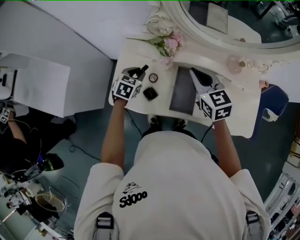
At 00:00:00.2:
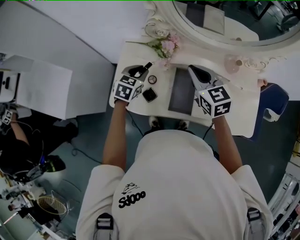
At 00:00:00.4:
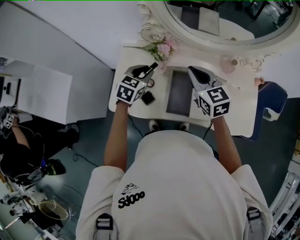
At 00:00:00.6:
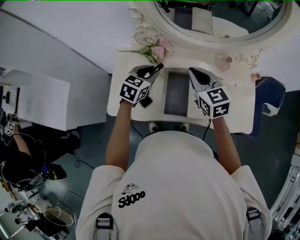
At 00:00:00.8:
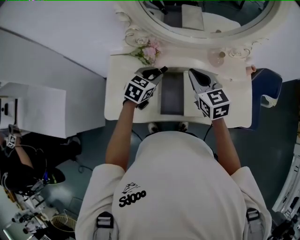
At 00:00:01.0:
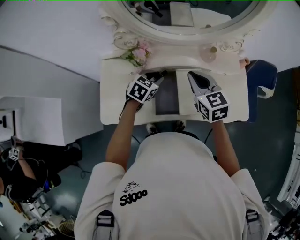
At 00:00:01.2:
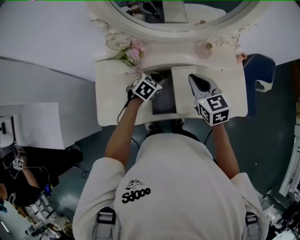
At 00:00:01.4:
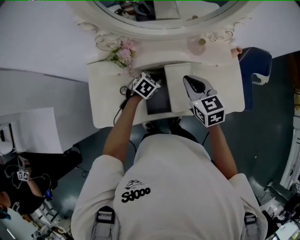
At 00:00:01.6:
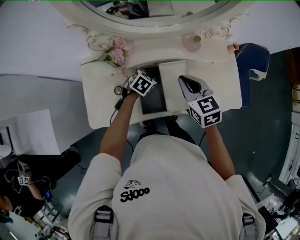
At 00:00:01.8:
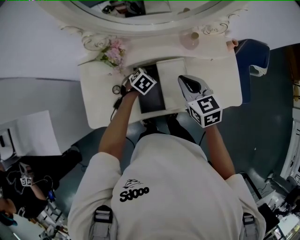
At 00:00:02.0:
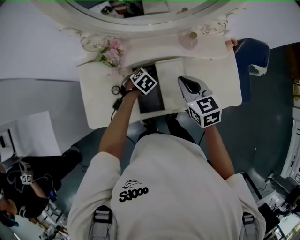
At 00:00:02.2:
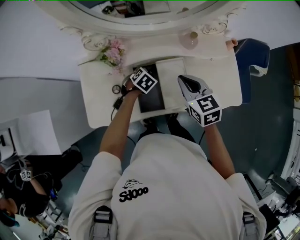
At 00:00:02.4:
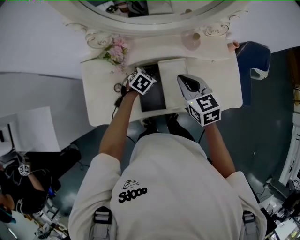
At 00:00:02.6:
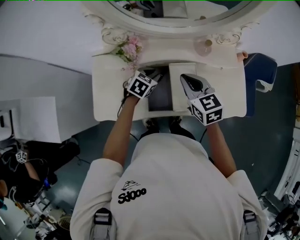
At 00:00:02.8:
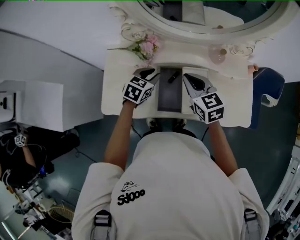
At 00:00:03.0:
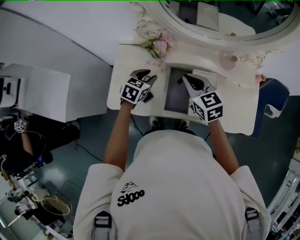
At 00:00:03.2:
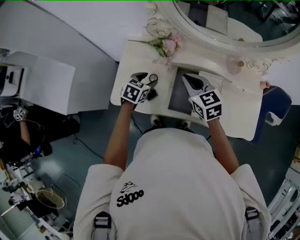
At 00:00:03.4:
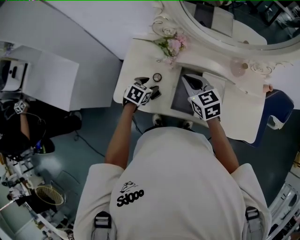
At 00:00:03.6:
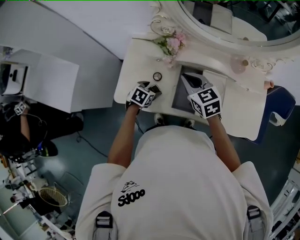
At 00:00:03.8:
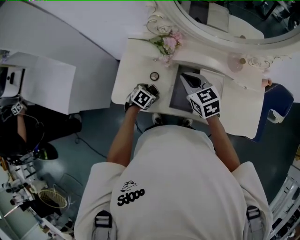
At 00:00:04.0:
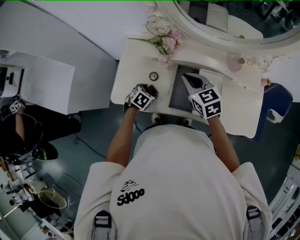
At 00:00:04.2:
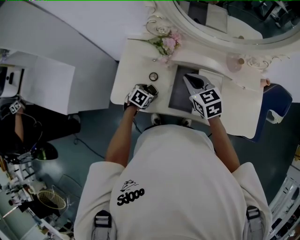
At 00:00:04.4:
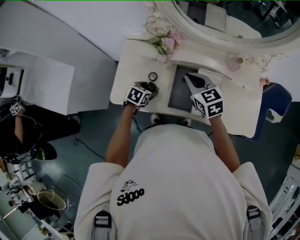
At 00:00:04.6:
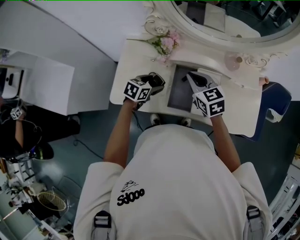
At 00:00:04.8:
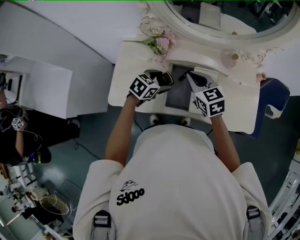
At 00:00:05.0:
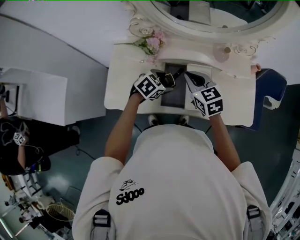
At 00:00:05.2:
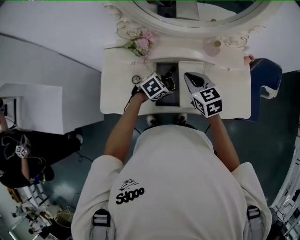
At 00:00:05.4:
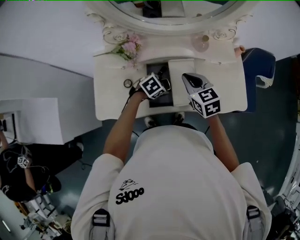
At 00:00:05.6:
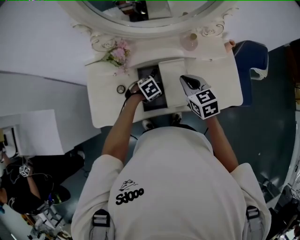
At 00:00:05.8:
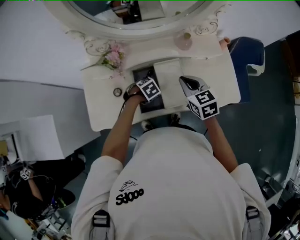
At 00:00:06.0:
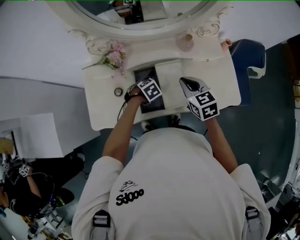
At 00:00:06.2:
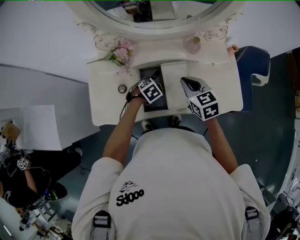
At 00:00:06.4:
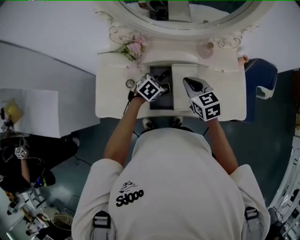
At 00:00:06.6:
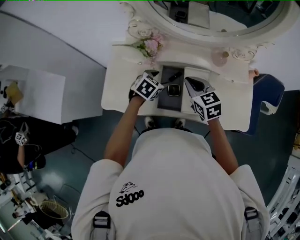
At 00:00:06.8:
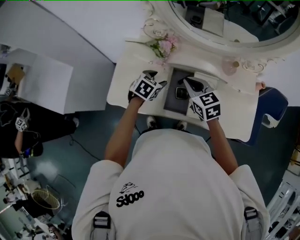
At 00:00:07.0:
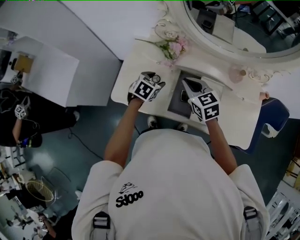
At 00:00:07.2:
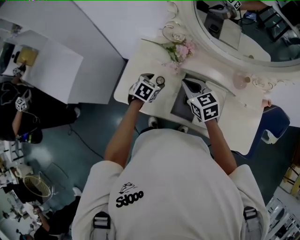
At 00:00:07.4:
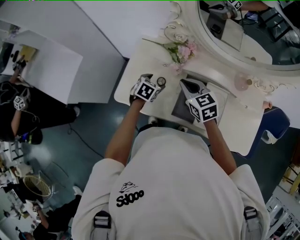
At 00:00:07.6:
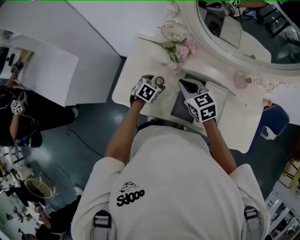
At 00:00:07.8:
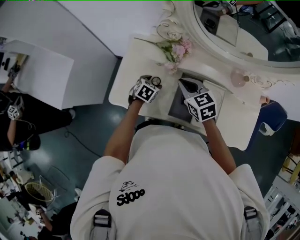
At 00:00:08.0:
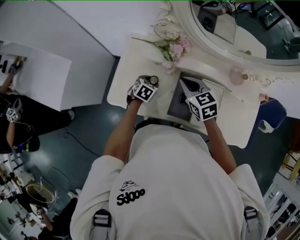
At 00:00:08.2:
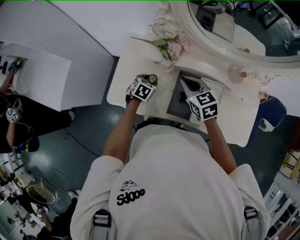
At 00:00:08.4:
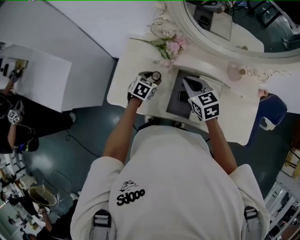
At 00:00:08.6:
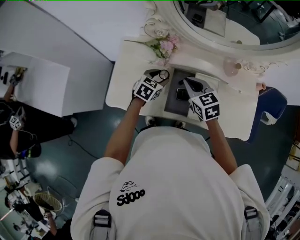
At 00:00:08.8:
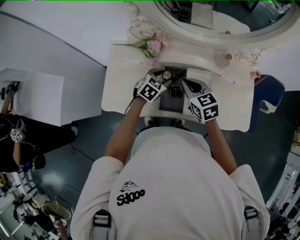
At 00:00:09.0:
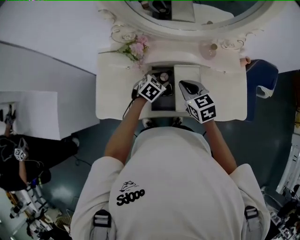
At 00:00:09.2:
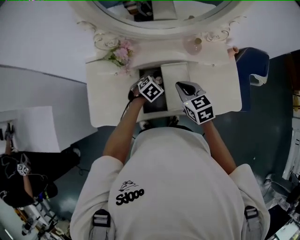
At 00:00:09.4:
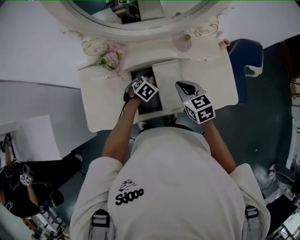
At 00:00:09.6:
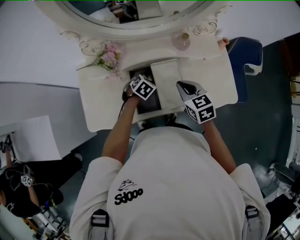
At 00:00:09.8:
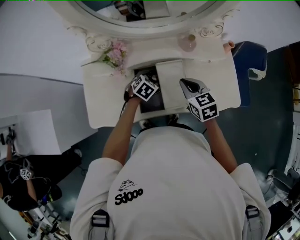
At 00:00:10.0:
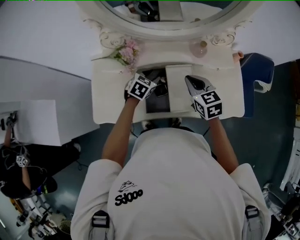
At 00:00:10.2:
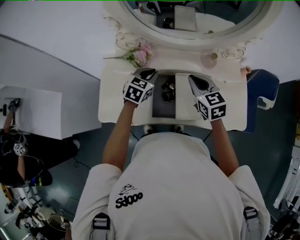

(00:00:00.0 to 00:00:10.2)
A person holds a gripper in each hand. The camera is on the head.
00:00:00.0 - 00:00:01.4: The left gripper moves some 25 cm, and changes its angle by approximately 30 degrees. The right gripper changes place by approximately 15 cm.
00:00:01.4 - 00:00:03.0: The left gripper travels to the left and upward by about 15 cm, and swivels approximately 30 degrees, while the right gripper travels to the left by about 10 cm.
00:00:03.0 - 00:00:04.4: The left gripper heads downward and backward, covering about 15 cm, and opens.
00:00:04.4 - 00:00:05.8: The right gripper changes place by about 15 cm, and rotates some 20 degrees. Meanwhile the left gripper moves approximately 10 cm upward and comes back, and twists roughly 40 degrees clockwise, seen from behind.
00:00:05.8 - 00:00:07.2: The left gripper shifts by about 20 cm, and turns by approximately 60 degrees, while the right gripper ends up roughly 20 cm from where it was, and rotates some 30 degrees.
00:00:07.2 - 00:00:08.8: The right gripper heads to the right, covering some 10 cm, while the left gripper is displaced to the right by about 15 cm, and rotates approximately 20 degrees.
00:00:08.8 - 00:00:10.2: The right gripper moves to the right, approximately 5 cm. The left gripper goes about 10 cm upward, and closes.

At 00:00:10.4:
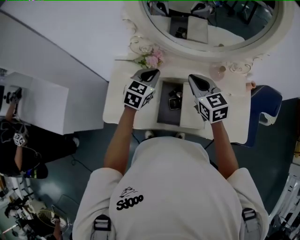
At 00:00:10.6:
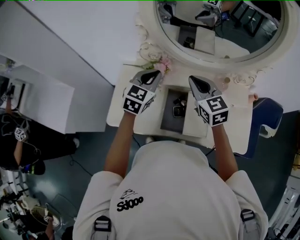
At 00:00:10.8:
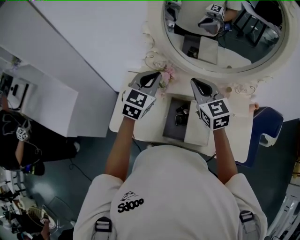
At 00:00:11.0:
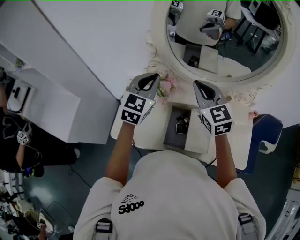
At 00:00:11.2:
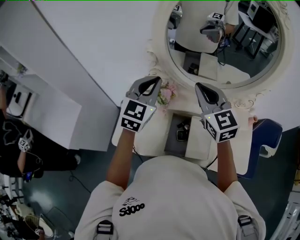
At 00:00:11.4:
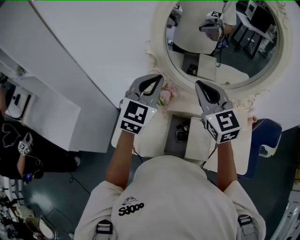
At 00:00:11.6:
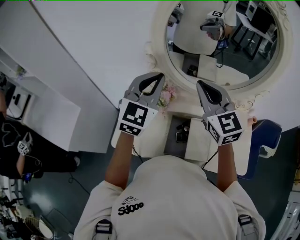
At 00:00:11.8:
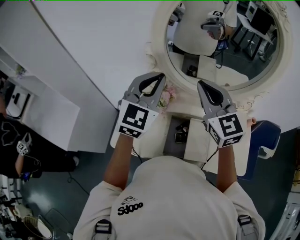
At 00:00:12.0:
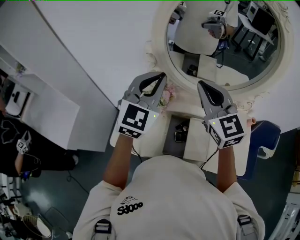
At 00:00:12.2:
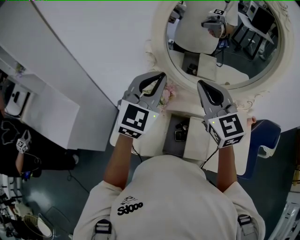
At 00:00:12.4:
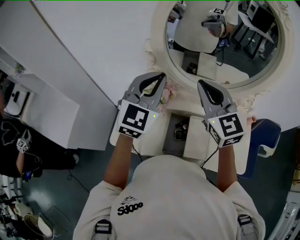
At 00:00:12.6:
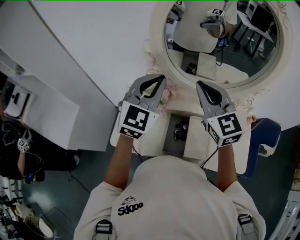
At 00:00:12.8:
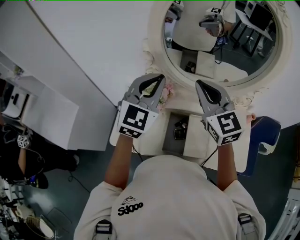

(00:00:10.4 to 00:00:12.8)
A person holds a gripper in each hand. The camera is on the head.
00:00:10.4 - 00:00:11.6: Both grippers move upward, approximately 20 cm. The left gripper rotates some 30 degrees; the right gripper rotates approximately 20 degrees.
00:00:11.6 - 00:00:12.8: The grippers make only small movements.

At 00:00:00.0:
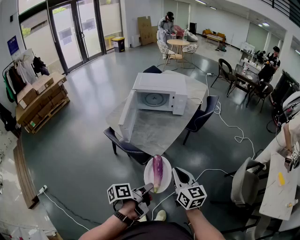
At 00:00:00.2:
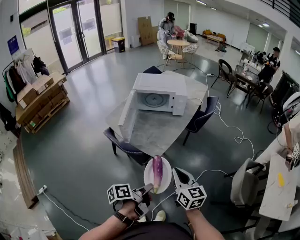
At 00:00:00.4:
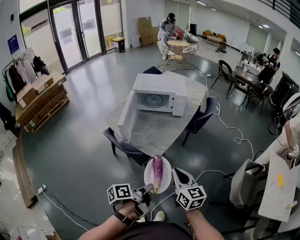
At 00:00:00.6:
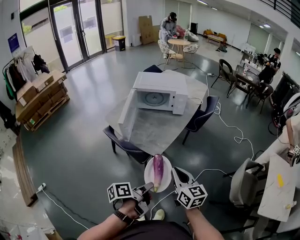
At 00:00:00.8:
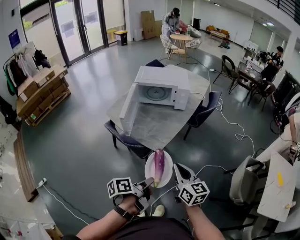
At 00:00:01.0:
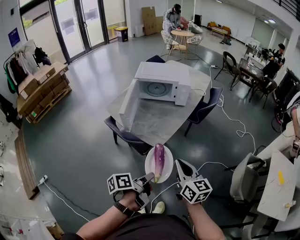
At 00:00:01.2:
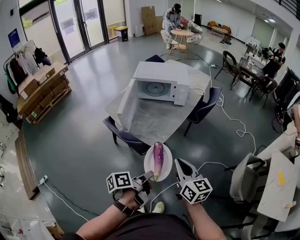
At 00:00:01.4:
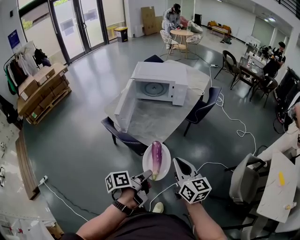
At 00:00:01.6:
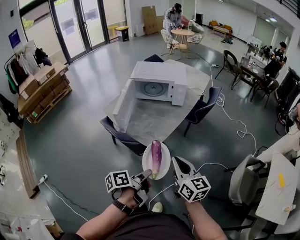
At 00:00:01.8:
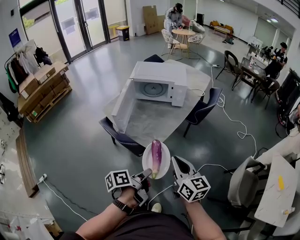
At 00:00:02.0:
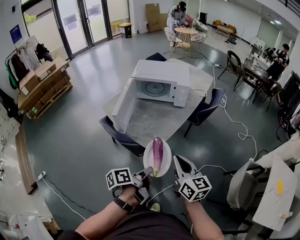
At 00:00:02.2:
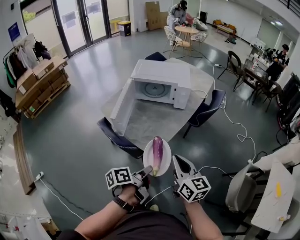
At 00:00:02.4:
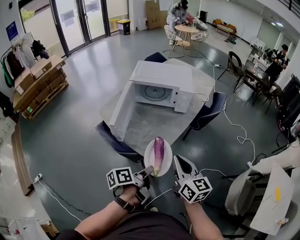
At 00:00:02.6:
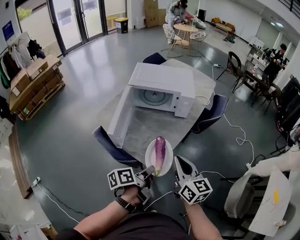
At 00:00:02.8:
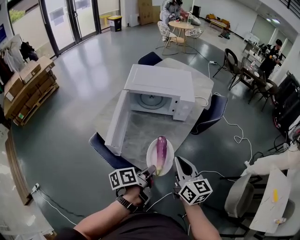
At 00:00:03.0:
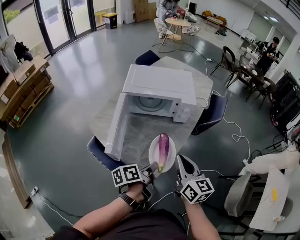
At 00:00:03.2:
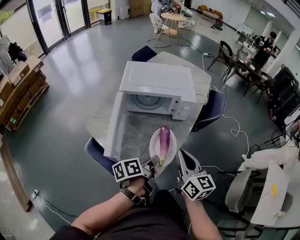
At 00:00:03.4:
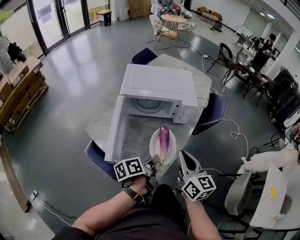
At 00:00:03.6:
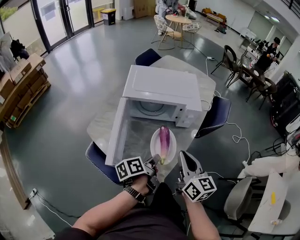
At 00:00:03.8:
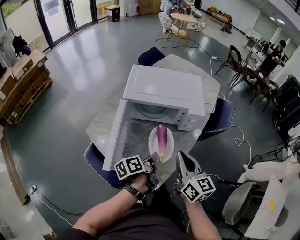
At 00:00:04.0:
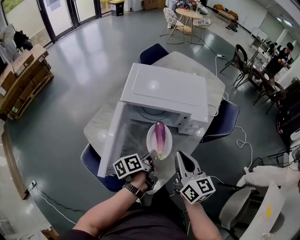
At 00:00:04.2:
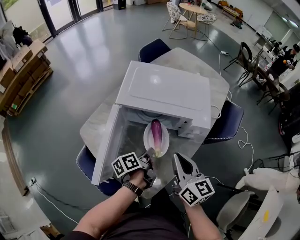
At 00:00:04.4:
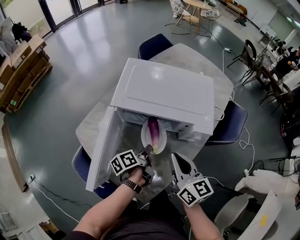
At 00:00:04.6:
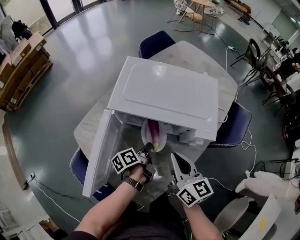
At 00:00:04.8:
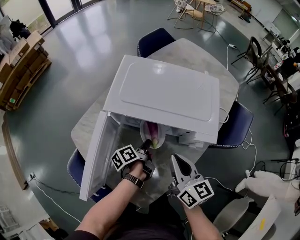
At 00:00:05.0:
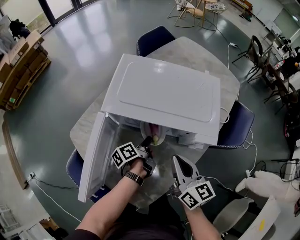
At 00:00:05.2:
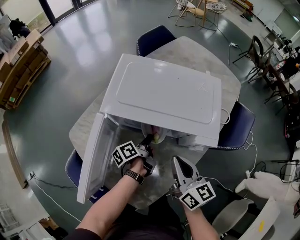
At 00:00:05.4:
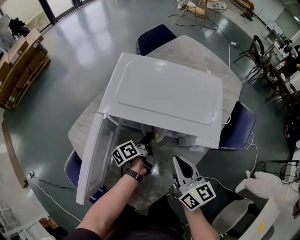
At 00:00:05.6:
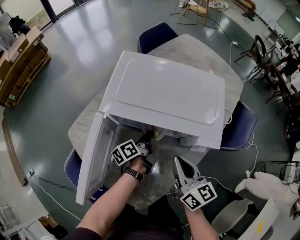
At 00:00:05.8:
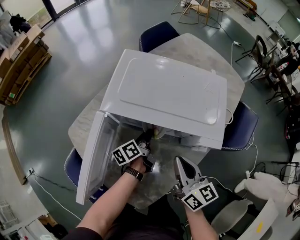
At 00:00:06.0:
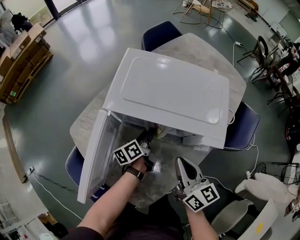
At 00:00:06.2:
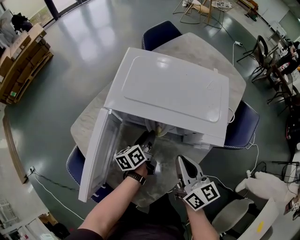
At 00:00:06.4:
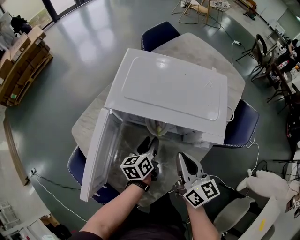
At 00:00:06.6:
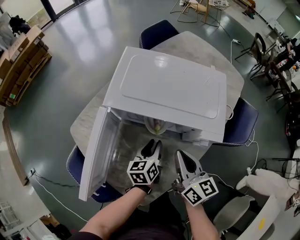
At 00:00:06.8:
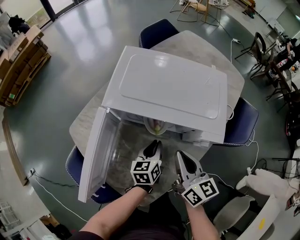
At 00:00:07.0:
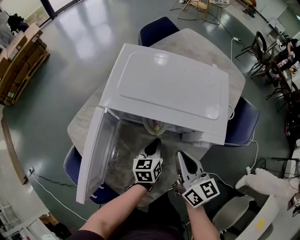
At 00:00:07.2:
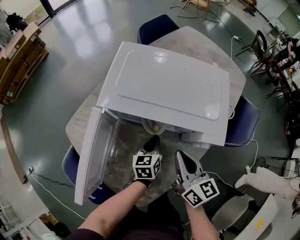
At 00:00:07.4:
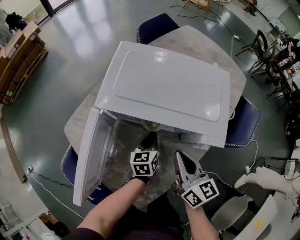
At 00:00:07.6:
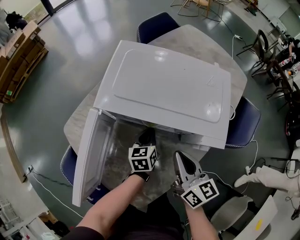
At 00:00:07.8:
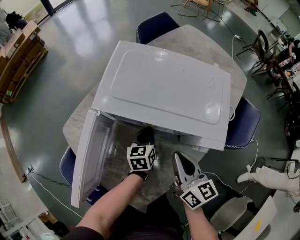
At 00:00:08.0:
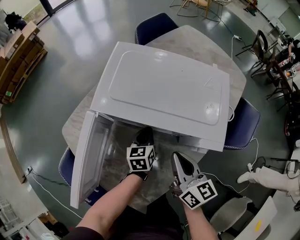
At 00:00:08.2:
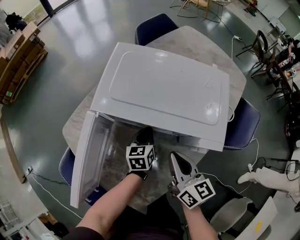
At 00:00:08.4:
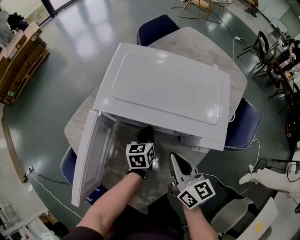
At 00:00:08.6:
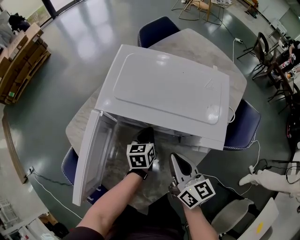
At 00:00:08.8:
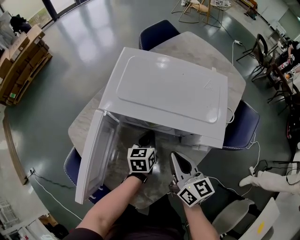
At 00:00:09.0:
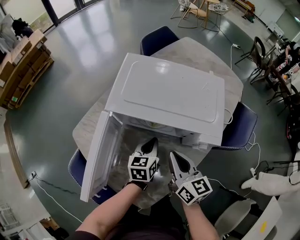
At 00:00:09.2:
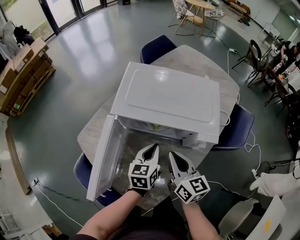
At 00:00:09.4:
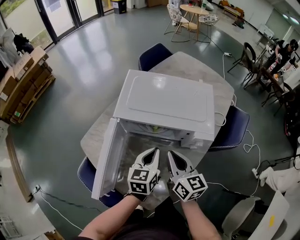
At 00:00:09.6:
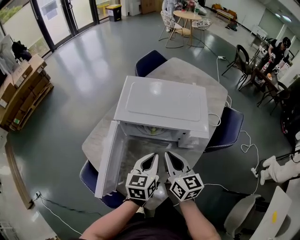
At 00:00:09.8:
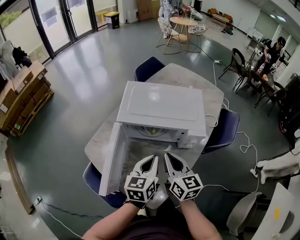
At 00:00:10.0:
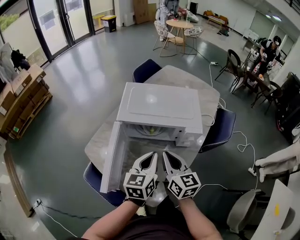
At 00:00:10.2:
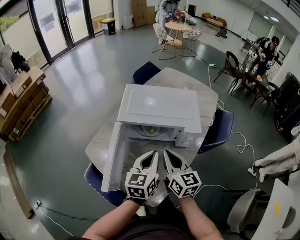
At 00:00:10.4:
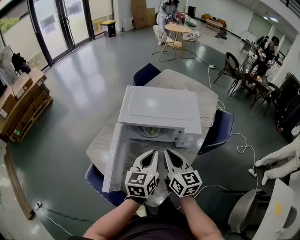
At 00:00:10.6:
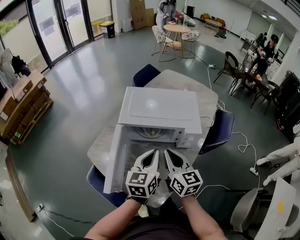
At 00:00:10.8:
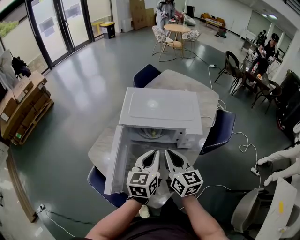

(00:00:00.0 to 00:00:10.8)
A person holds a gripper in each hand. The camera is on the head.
00:00:00.0 - 00:00:01.6: The left gripper moves roughly 5 cm.
00:00:01.6 - 00:00:03.0: Both grippers move forward, roughly 25 cm.
00:00:03.0 - 00:00:04.6: The left gripper shifts about 35 cm forward and downward, and rotates approximately 20 degrees; the right gripper moves forward, approximately 25 cm.
00:00:04.6 - 00:00:06.2: The left gripper shifts about 5 cm forward, swivels about 20 degrees, and opens up.
00:00:06.2 - 00:00:07.8: The left gripper rotates about 30 degrees, and closes.
00:00:07.8 - 00:00:09.2: The right gripper changes place by roughly 5 cm; the left gripper is displaced upward and backward by approximately 15 cm.
00:00:09.2 - 00:00:10.8: The left gripper travels upward and backward by some 20 cm; the right gripper heads upward and backward, covering some 10 cm.
